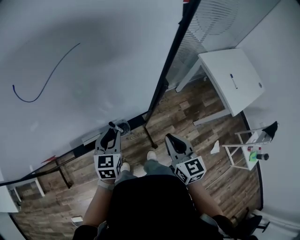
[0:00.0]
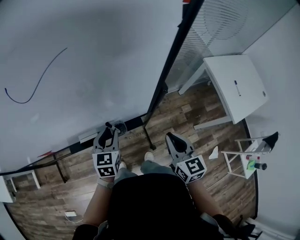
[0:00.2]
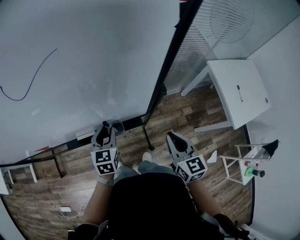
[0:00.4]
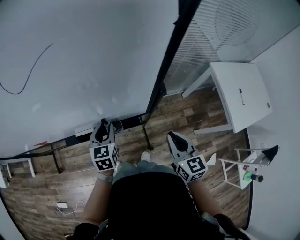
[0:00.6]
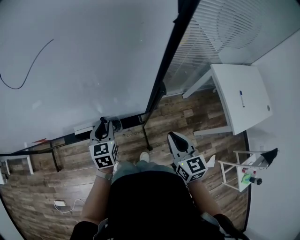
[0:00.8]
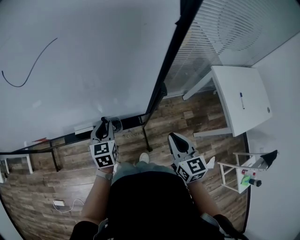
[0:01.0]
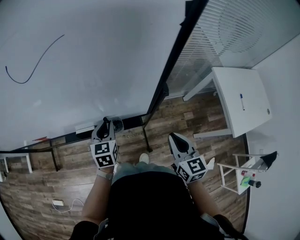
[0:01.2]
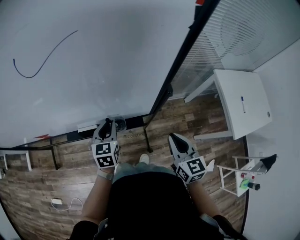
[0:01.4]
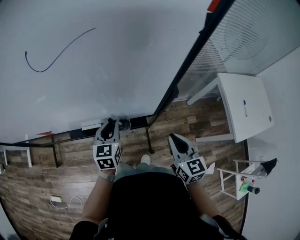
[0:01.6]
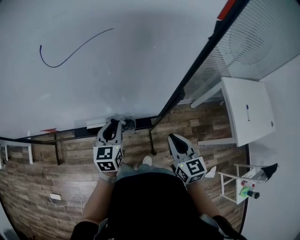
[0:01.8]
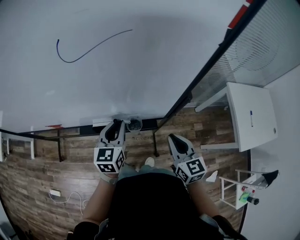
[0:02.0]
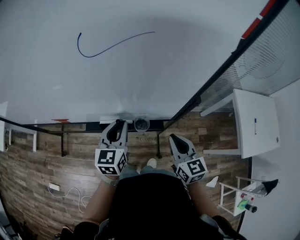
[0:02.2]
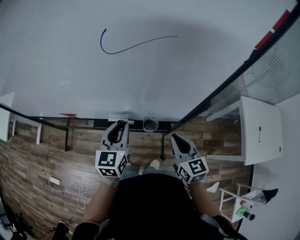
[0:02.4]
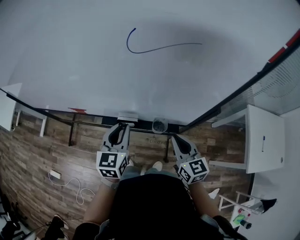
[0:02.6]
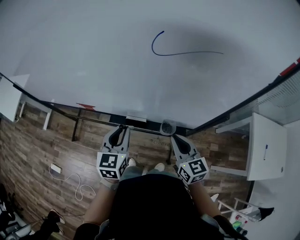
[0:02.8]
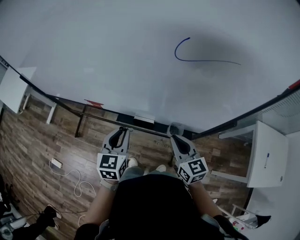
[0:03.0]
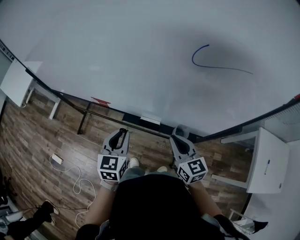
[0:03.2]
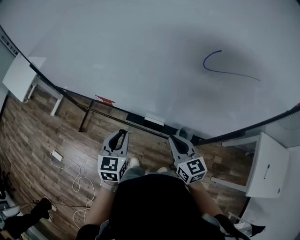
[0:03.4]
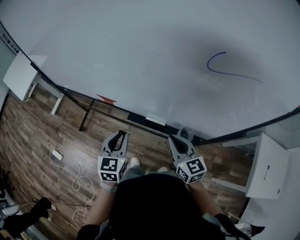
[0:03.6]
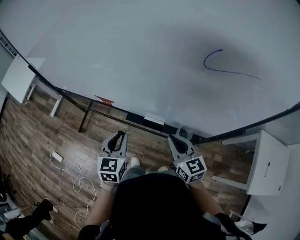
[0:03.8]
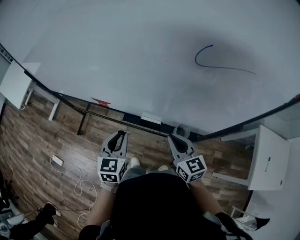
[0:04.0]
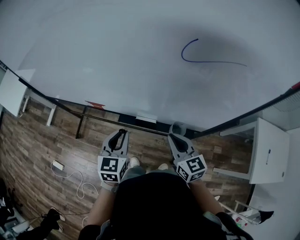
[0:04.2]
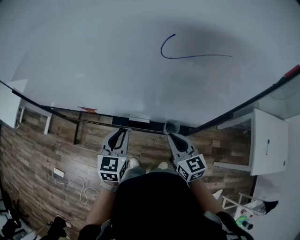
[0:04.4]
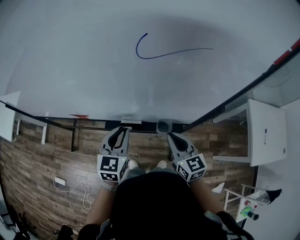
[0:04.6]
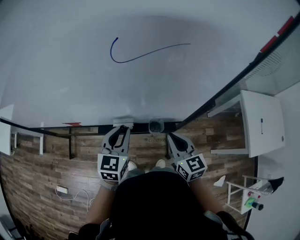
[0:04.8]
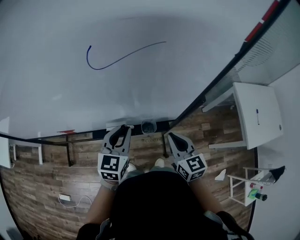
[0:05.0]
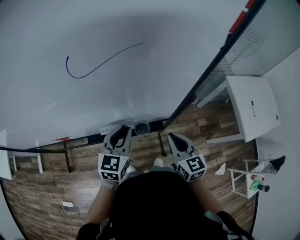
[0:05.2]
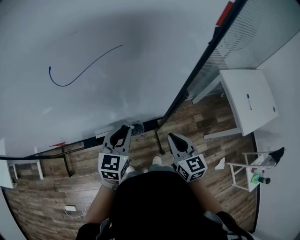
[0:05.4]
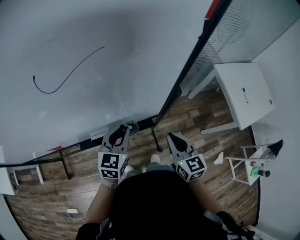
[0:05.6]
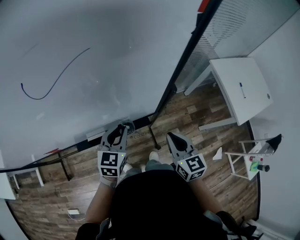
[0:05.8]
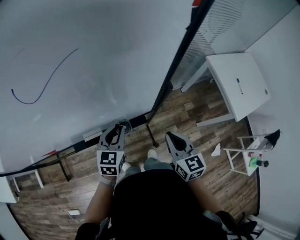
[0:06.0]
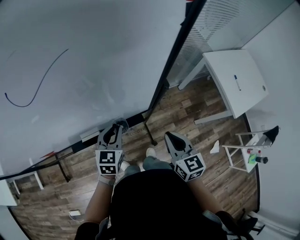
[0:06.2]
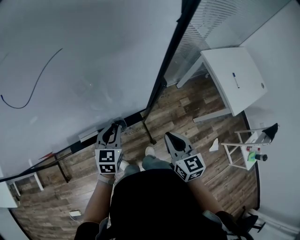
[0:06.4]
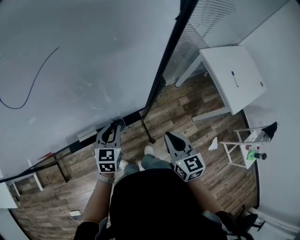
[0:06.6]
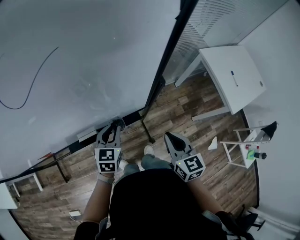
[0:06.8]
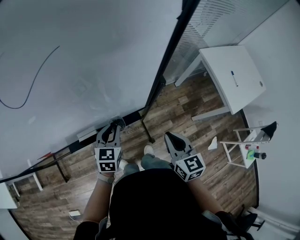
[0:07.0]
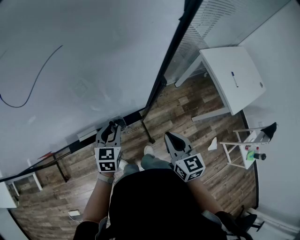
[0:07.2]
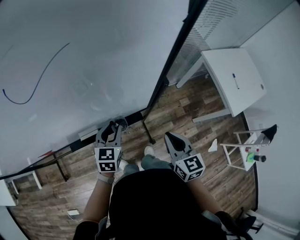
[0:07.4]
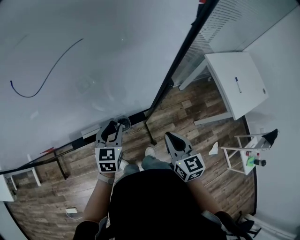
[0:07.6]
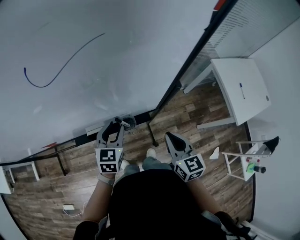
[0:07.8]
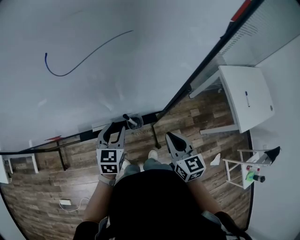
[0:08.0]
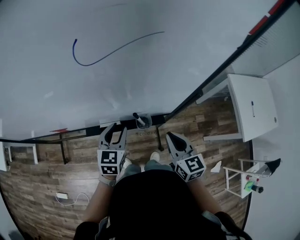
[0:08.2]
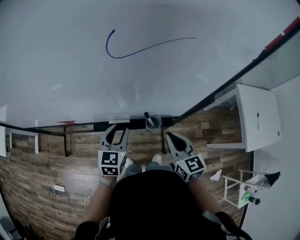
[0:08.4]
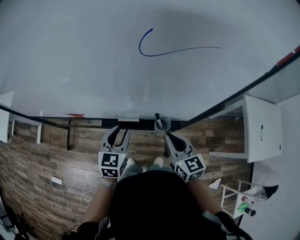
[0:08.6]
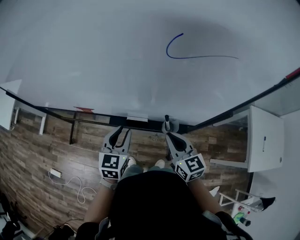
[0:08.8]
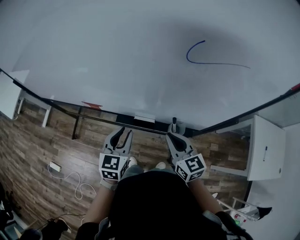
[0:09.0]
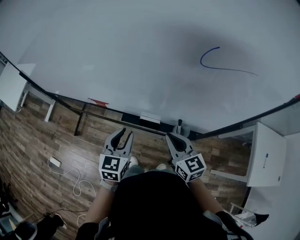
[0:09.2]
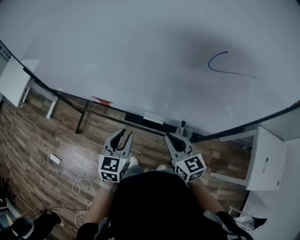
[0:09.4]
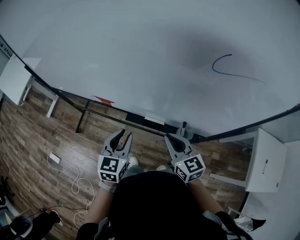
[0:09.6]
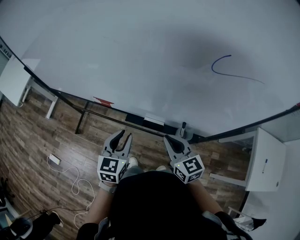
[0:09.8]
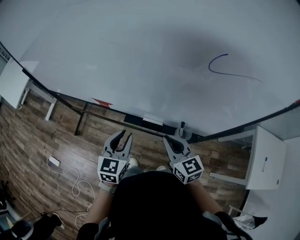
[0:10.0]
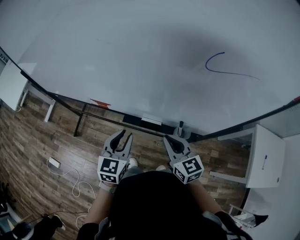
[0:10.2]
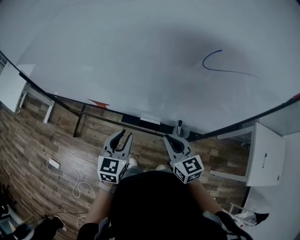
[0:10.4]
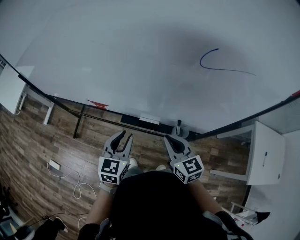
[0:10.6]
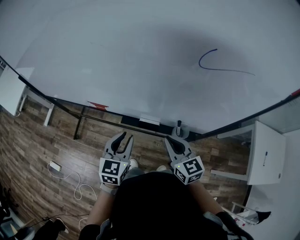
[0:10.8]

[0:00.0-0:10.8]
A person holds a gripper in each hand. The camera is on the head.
0:01.6 to 0:03.0: Both grippers travel together to the left, approximately 20 cm. The right gripper turns by about 30 degrees.
0:03.0 to 0:04.6: The left gripper moves to the right, approximately 5 cm. Meanwhile the right gripper travels to the left and back again, about 5 cm each way.
0:04.6 to 0:06.2: The left gripper changes place by about 20 cm, and turns by some 20 degrees. Meanwhile the right gripper ends up some 15 cm from where it was, and swivels about 30 degrees.
0:06.2 to 0:07.8: There are only small adjustments of the grippers.
0:07.8 to 0:09.2: The left gripper moves some 25 cm, and swivels about 30 degrees. The right gripper moves roughly 25 cm, and turns by some 40 degrees.
0:09.2 to 0:10.8: There are only small adjustments of the grippers.

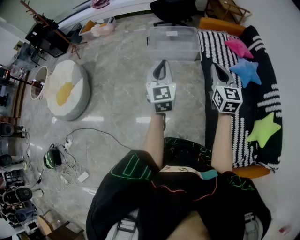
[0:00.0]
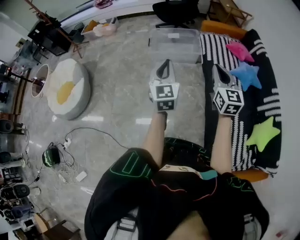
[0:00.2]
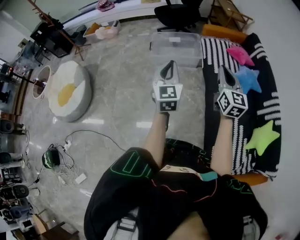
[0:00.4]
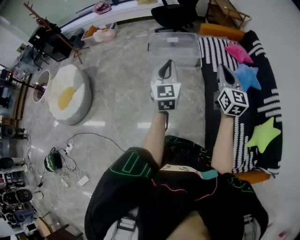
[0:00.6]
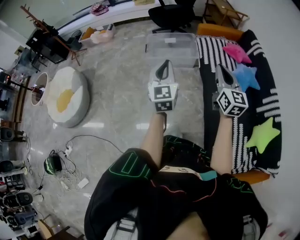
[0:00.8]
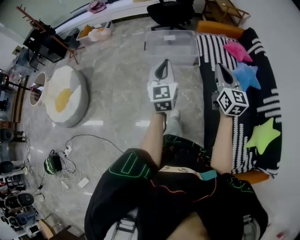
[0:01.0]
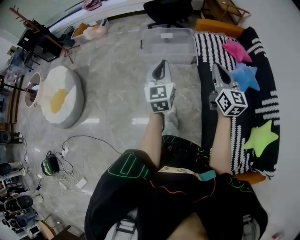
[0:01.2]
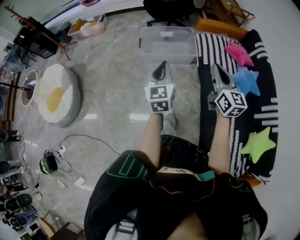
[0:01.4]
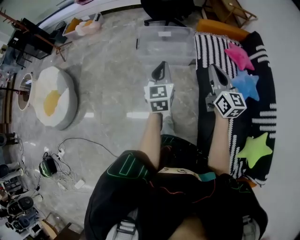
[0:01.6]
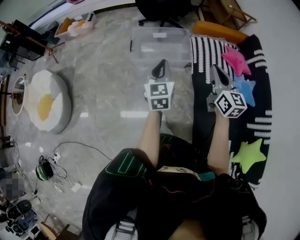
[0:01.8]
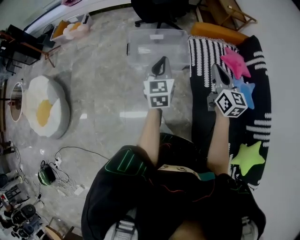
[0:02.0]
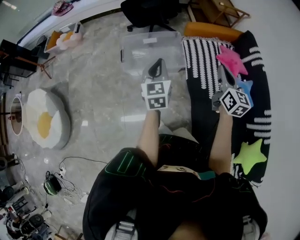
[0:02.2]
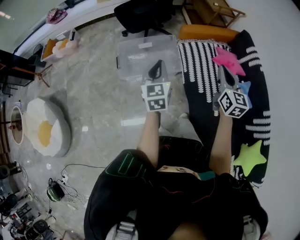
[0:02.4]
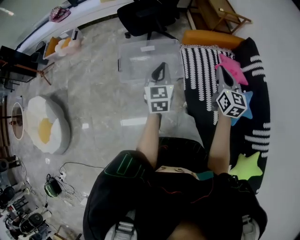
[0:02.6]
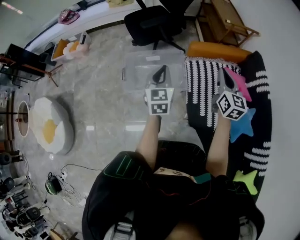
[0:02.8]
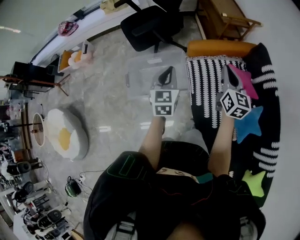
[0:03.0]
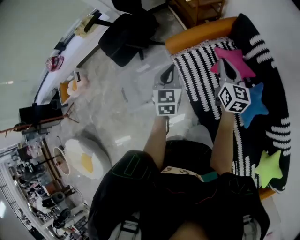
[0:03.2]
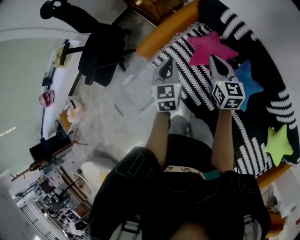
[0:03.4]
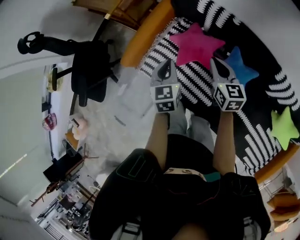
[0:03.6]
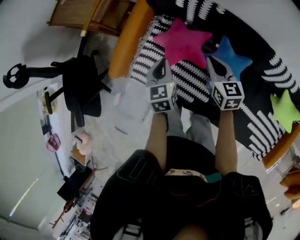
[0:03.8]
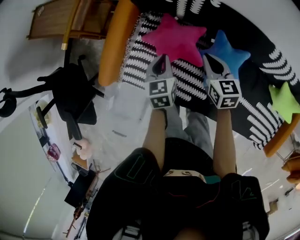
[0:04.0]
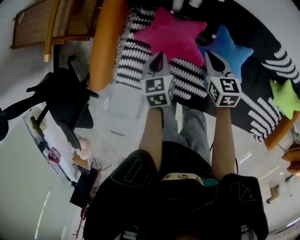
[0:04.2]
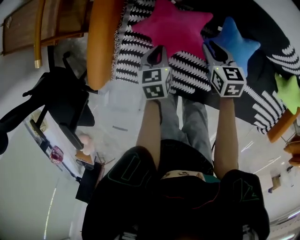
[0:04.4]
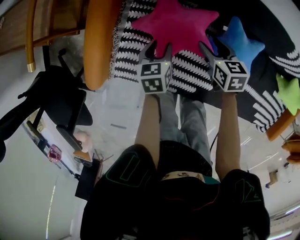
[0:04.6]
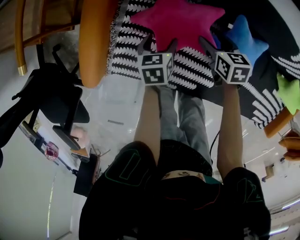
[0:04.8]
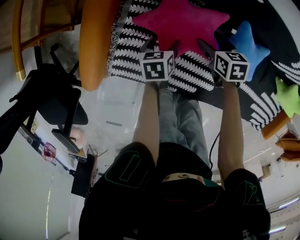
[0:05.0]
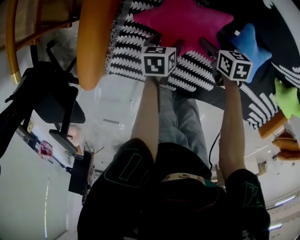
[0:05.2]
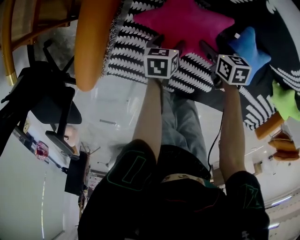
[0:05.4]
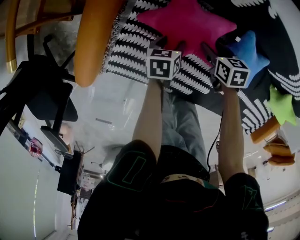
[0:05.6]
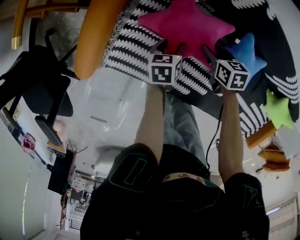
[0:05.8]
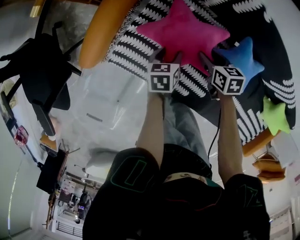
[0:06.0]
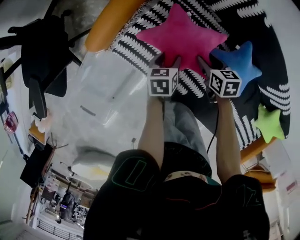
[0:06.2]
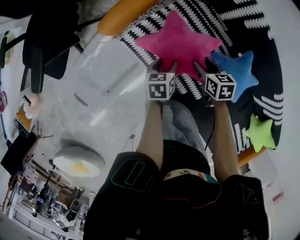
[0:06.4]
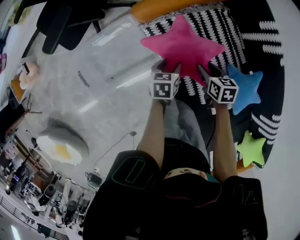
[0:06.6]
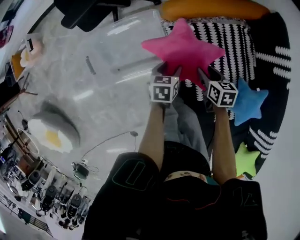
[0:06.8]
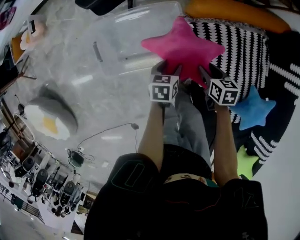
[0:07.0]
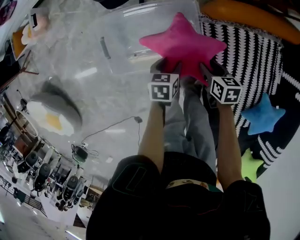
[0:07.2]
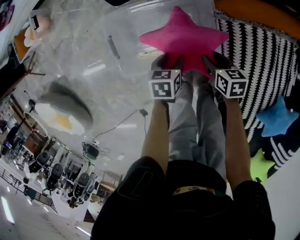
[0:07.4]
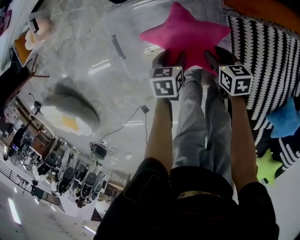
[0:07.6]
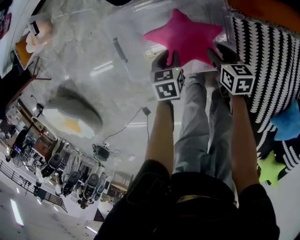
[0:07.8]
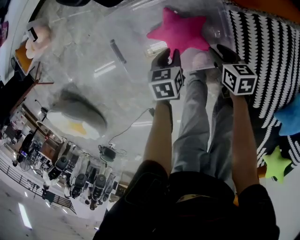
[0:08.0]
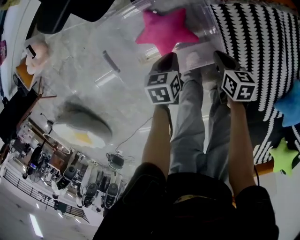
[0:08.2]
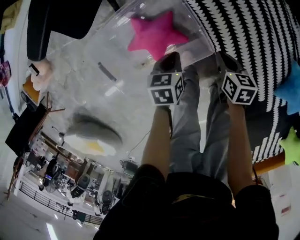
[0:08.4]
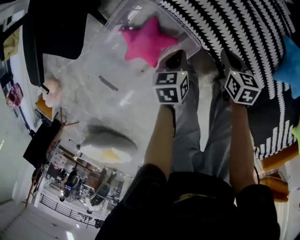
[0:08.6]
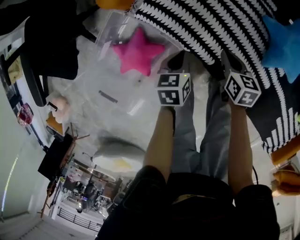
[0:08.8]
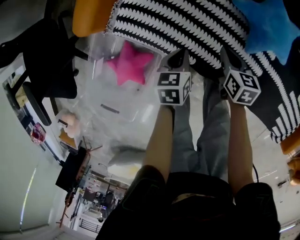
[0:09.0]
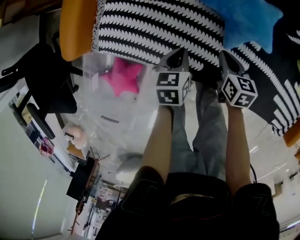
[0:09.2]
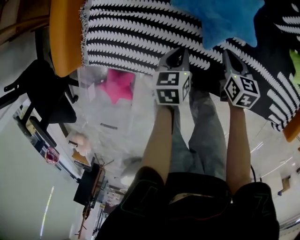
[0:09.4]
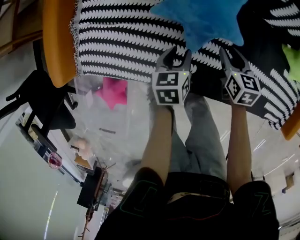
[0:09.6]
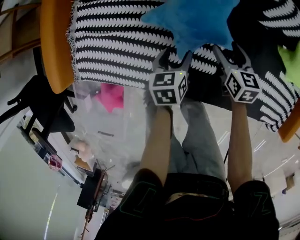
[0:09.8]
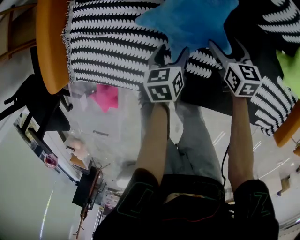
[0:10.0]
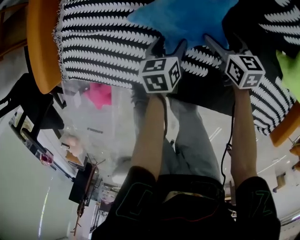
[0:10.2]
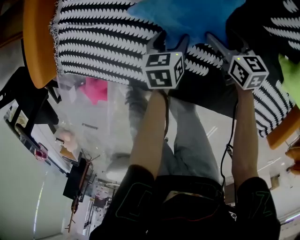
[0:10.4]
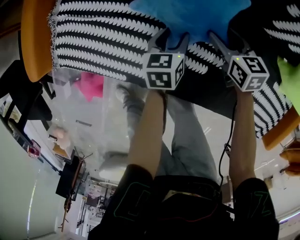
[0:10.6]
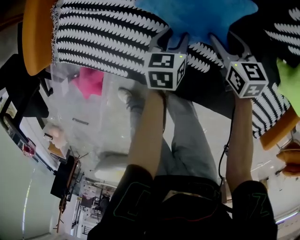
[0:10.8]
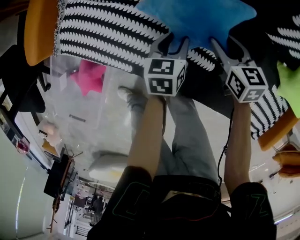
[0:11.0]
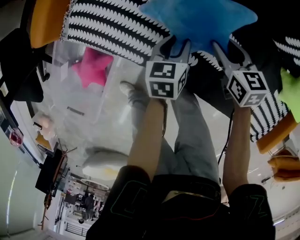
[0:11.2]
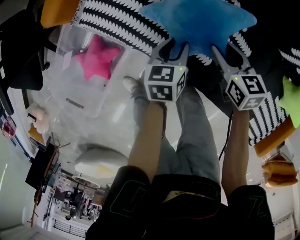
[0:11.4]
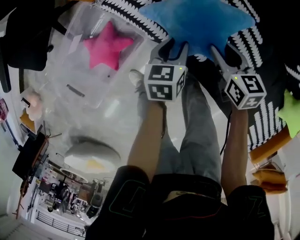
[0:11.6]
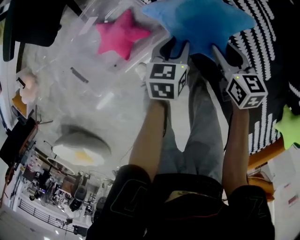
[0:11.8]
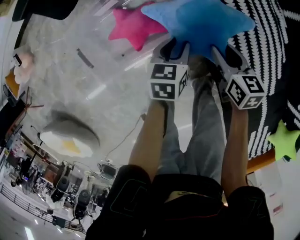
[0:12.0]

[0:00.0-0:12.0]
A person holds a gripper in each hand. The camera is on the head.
0:00.0 to 0:01.6: Both grippers travel together forward, some 20 cm.
0:01.6 to 0:03.0: Both grippers are carried forward and to the right, roughly 50 cm. The right gripper swivels roughly 20 degrees.
0:03.0 to 0:04.4: The right gripper moves downward, roughly 35 cm, and points its fingers roughly 40 degrees further downward. Meanwhile the left gripper moves about 60 cm, and swivels about 70 degrees.
0:04.4 to 0:06.0: The left gripper shifts about 10 cm downward and backward, and opens its fingers. The right gripper shifts some 10 cm downward and to the left, rotates roughly 20 degrees, and opens, then closes again.
0:06.0 to 0:07.6: Both grippers are carried approximately 50 cm. The right gripper changes its angle by some 50 degrees; the left gripper swivels approximately 50 degrees.
0:07.6 to 0:09.0: The right gripper changes place by roughly 40 cm, changes its angle by some 70 degrees, and closes; the left gripper shifts by approximately 40 cm, twists roughly 40 degrees clockwise, seen from behind, and closes up.
0:09.0 to 0:10.4: The grippers both shift to the right and forward by roughly 30 cm. The right gripper opens up; the left gripper opens up.
0:10.4 to 0:12.0: The two grippers travel together, roughly 50 cm. The right gripper swivels some 40 degrees, and closes its fingers, while the left gripper rotates roughly 40 degrees, and closes its fingers.

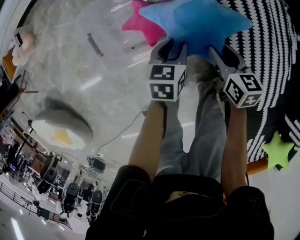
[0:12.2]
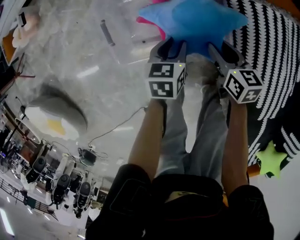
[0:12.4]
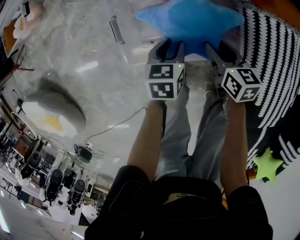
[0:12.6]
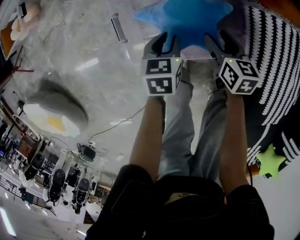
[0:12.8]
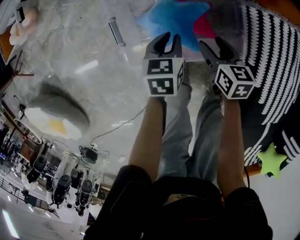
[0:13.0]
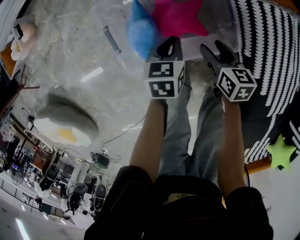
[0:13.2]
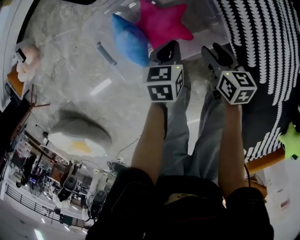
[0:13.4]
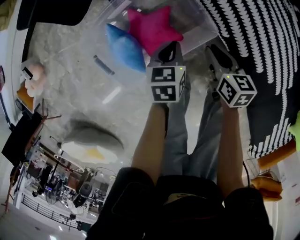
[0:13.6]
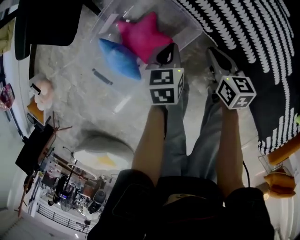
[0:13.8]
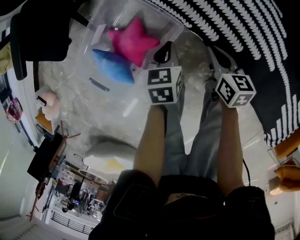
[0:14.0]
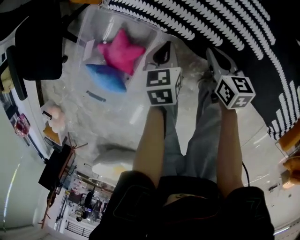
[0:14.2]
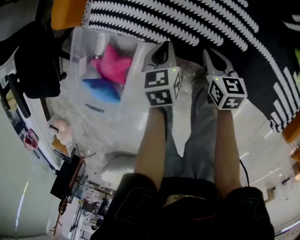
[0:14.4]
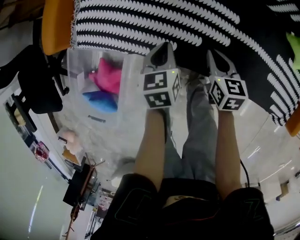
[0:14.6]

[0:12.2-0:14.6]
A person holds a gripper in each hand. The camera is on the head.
0:12.2 to 0:13.4: The right gripper heads to the left and downward, covering roughly 10 cm, while the left gripper is displaced to the left by roughly 10 cm, and closes.
0:13.4 to 0:14.6: Both grippers are carried approximately 50 cm. The right gripper changes its angle by roughly 50 degrees, and closes, while the left gripper rotates approximately 40 degrees.
